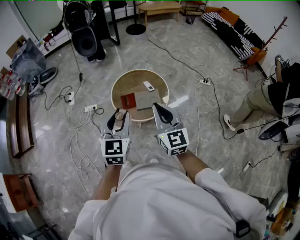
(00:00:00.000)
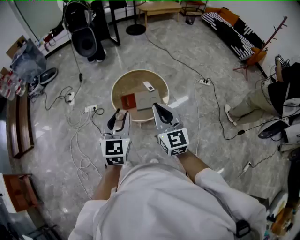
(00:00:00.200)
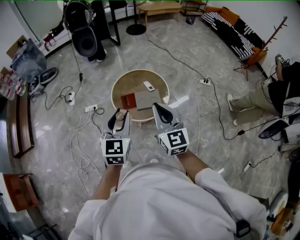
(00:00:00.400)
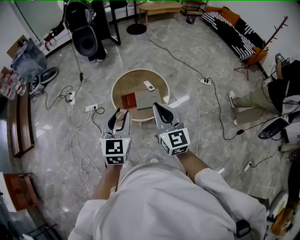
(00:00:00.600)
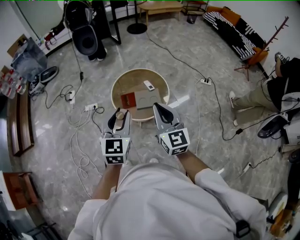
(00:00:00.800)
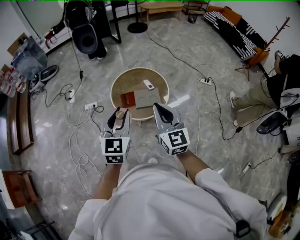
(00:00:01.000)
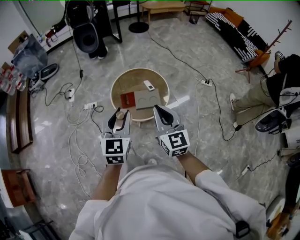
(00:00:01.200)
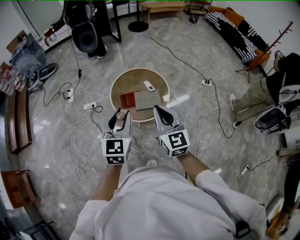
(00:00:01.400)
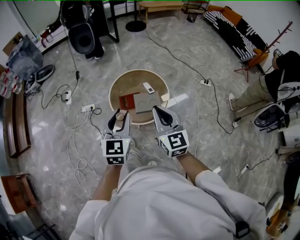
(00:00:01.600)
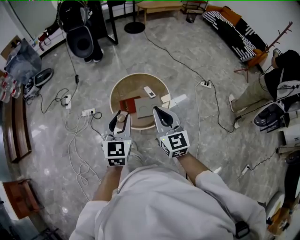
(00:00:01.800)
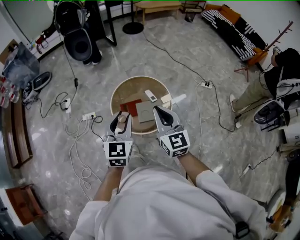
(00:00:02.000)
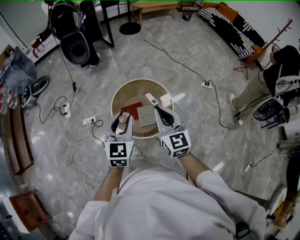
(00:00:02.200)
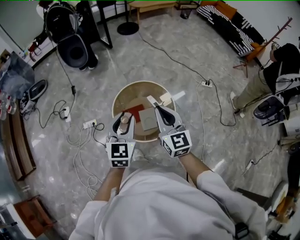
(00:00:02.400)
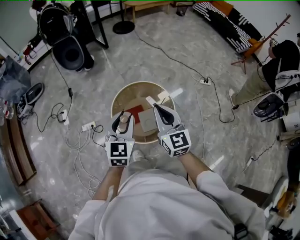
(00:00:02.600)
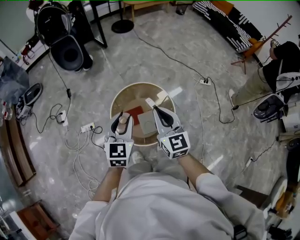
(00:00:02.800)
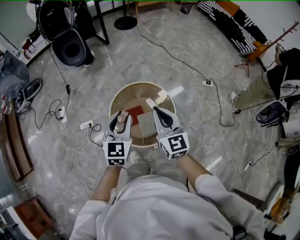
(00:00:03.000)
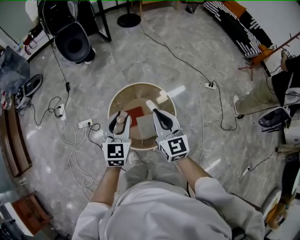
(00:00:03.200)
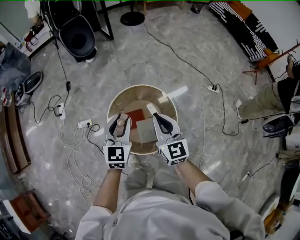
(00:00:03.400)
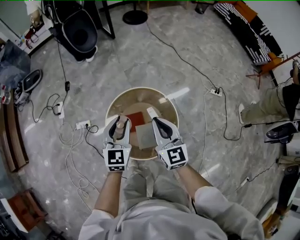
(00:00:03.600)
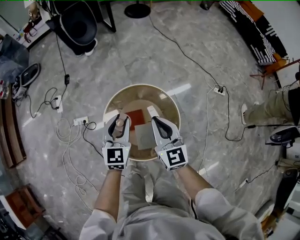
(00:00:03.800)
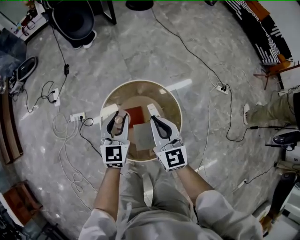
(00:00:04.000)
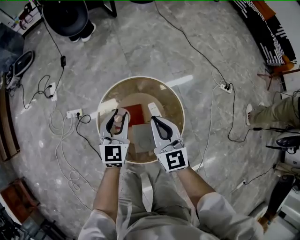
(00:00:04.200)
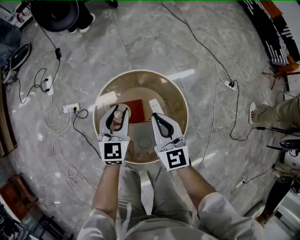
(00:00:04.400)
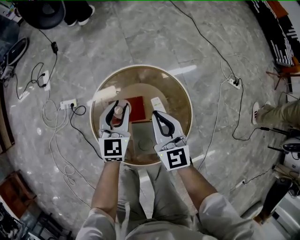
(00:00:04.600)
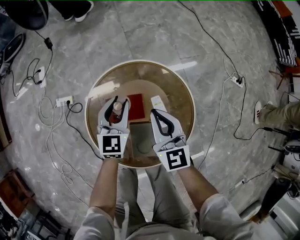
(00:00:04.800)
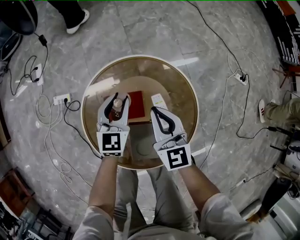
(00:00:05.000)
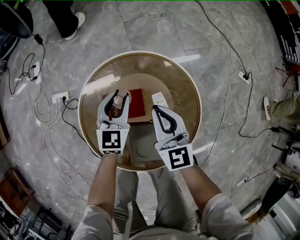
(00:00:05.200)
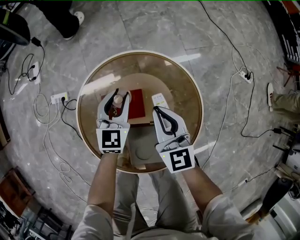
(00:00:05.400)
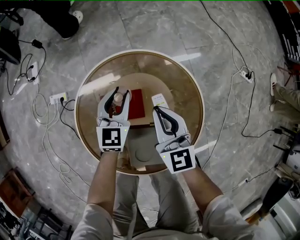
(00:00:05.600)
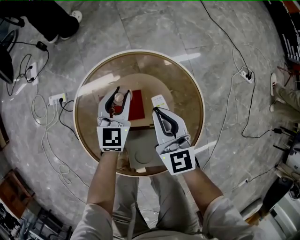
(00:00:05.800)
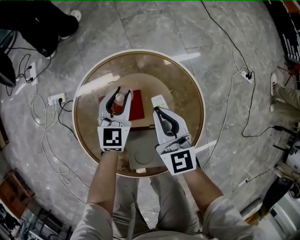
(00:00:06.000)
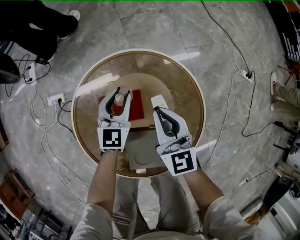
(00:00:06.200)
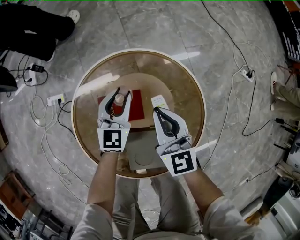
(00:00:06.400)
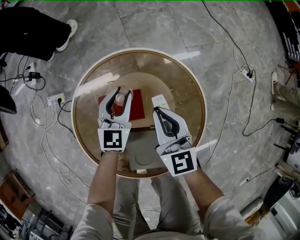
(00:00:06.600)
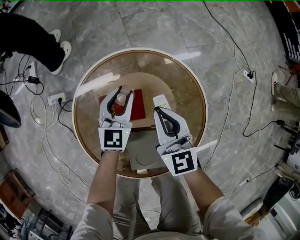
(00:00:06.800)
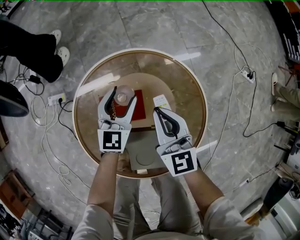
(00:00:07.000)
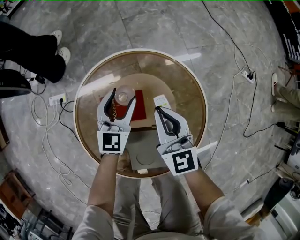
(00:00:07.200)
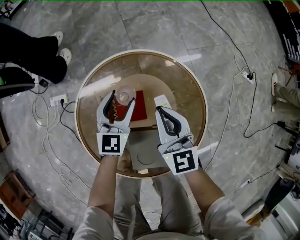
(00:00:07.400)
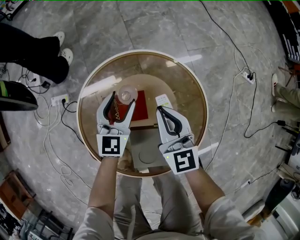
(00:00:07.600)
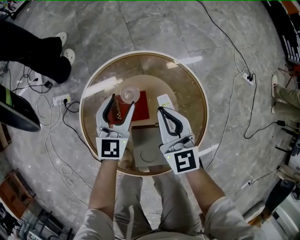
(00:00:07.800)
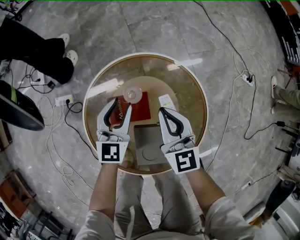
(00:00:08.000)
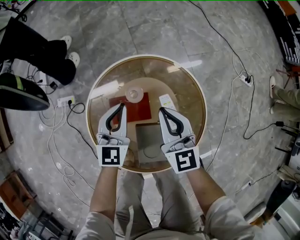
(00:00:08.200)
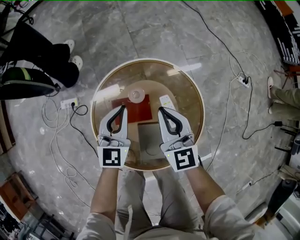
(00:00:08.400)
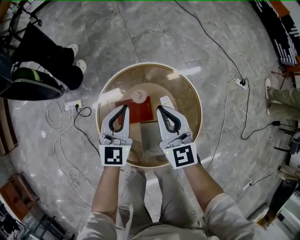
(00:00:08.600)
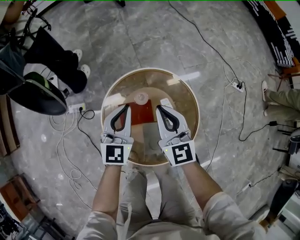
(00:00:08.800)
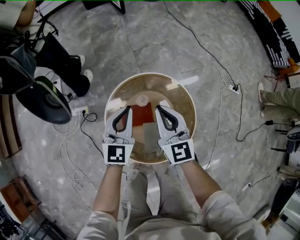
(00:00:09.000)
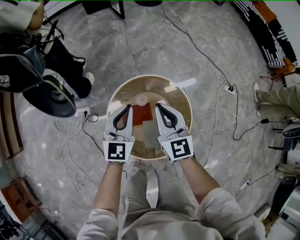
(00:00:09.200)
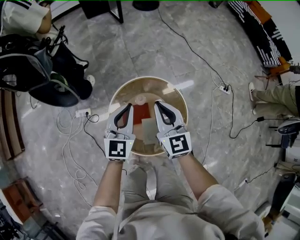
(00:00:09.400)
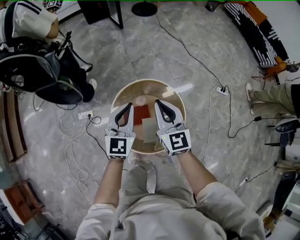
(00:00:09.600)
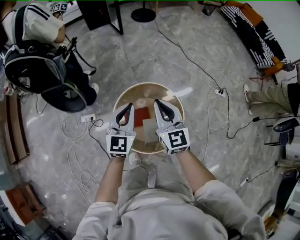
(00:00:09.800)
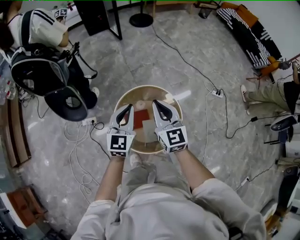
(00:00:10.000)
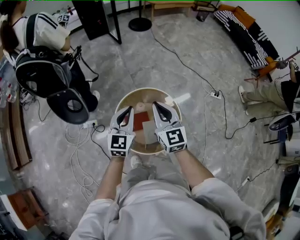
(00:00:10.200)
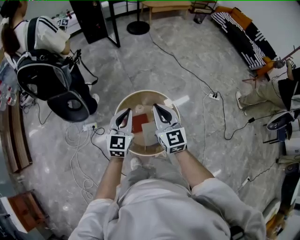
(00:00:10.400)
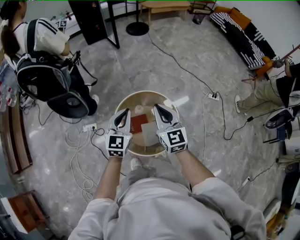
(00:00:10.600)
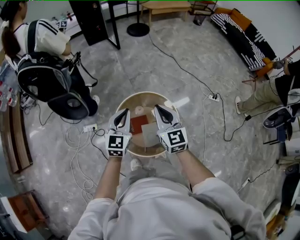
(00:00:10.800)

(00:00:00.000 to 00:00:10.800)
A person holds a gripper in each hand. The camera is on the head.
00:00:00.000 - 00:00:01.600: Both grippers travel together forward, roughly 5 cm.
00:00:01.600 - 00:00:03.000: Both grippers move forward, approximately 25 cm.
00:00:03.000 - 00:00:04.600: The grippers both shift downward and forward by approximately 40 cm.
00:00:04.600 - 00:00:06.200: The two grippers go roughly 15 cm downward.
00:00:06.200 - 00:00:07.800: The left gripper changes place by approximately 5 cm, and opens its fingers.
00:00:07.800 - 00:00:09.200: Both grippers move upward, roughly 30 cm. The left gripper closes.
00:00:09.200 - 00:00:10.800: The two grippers go about 20 cm upward and backward.

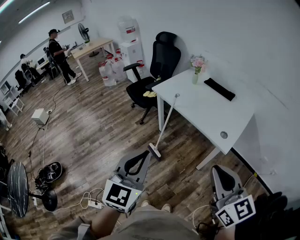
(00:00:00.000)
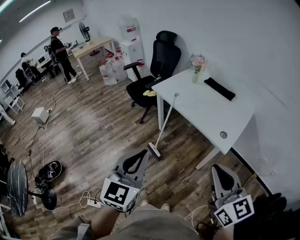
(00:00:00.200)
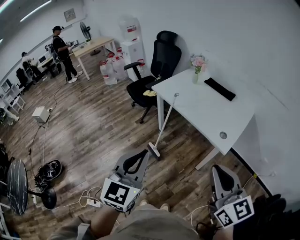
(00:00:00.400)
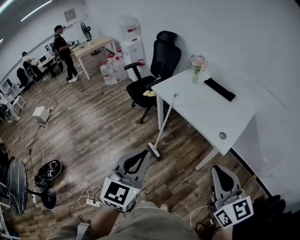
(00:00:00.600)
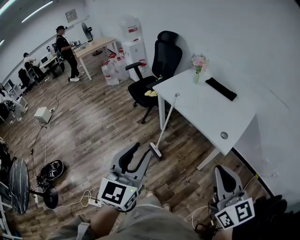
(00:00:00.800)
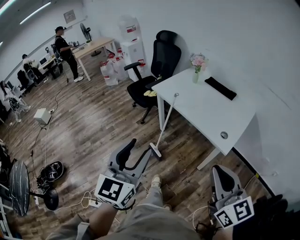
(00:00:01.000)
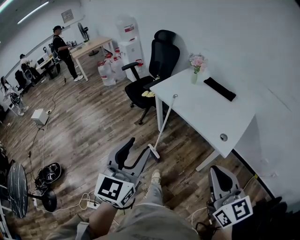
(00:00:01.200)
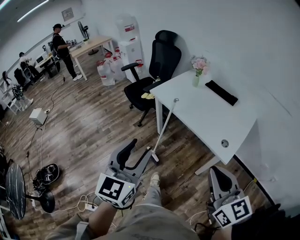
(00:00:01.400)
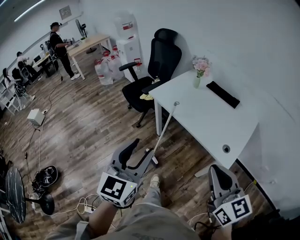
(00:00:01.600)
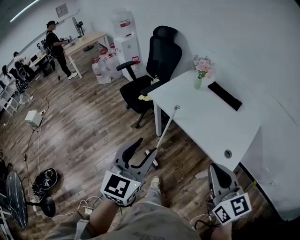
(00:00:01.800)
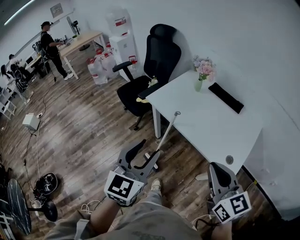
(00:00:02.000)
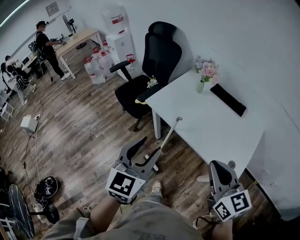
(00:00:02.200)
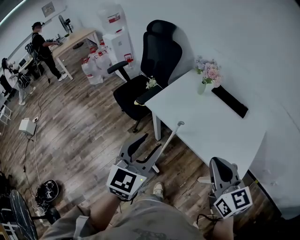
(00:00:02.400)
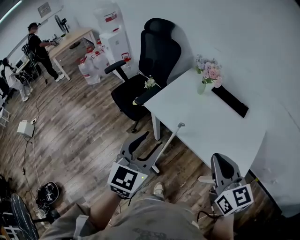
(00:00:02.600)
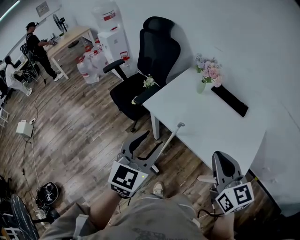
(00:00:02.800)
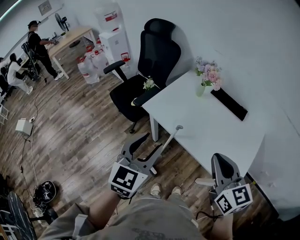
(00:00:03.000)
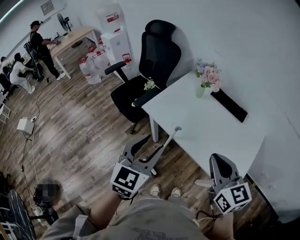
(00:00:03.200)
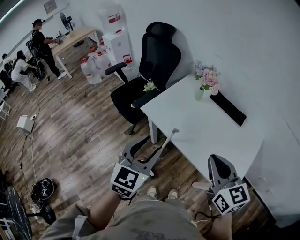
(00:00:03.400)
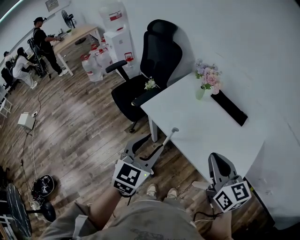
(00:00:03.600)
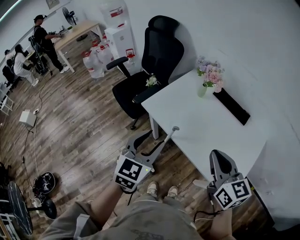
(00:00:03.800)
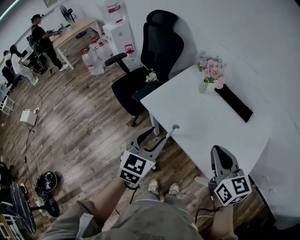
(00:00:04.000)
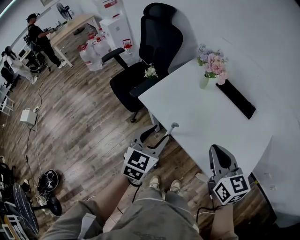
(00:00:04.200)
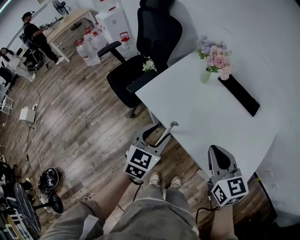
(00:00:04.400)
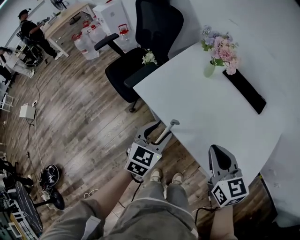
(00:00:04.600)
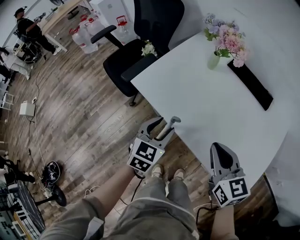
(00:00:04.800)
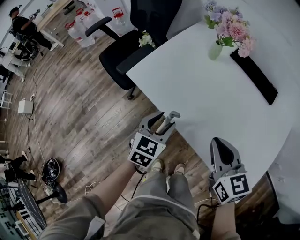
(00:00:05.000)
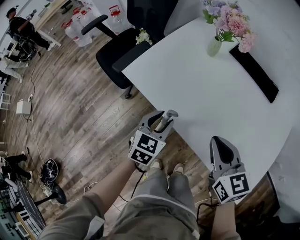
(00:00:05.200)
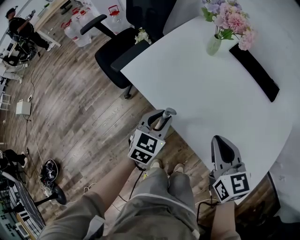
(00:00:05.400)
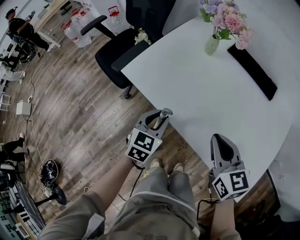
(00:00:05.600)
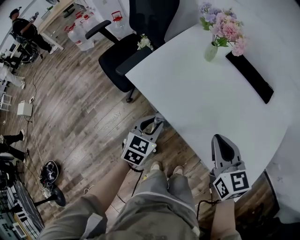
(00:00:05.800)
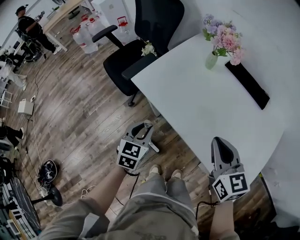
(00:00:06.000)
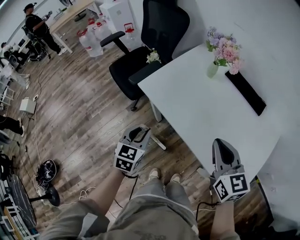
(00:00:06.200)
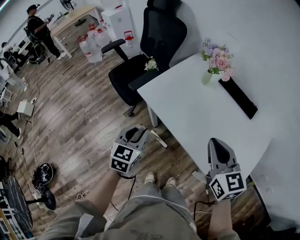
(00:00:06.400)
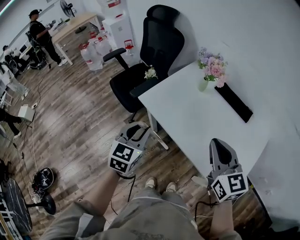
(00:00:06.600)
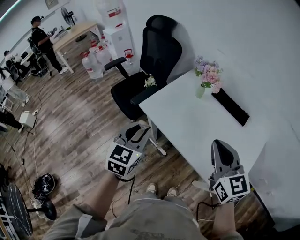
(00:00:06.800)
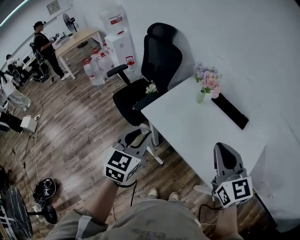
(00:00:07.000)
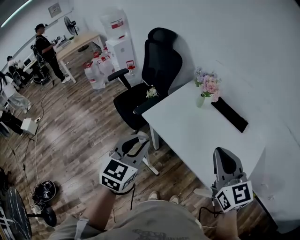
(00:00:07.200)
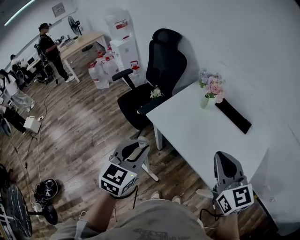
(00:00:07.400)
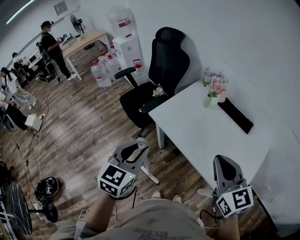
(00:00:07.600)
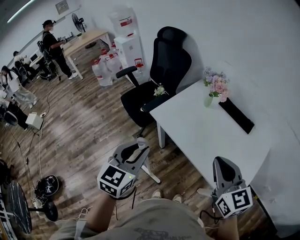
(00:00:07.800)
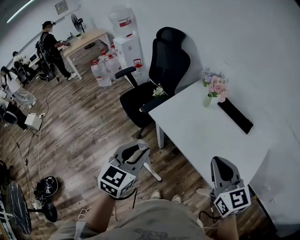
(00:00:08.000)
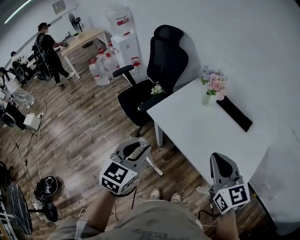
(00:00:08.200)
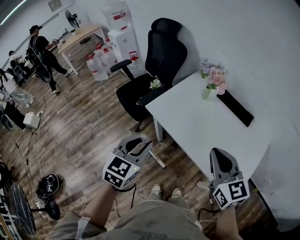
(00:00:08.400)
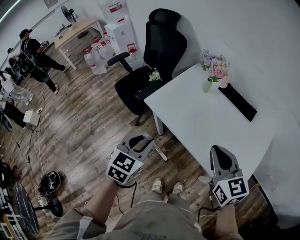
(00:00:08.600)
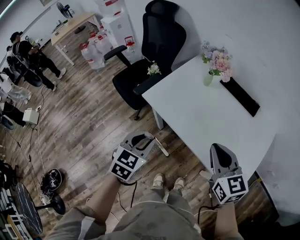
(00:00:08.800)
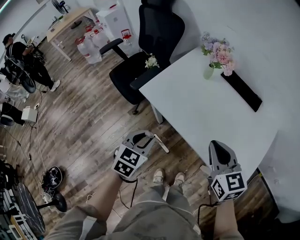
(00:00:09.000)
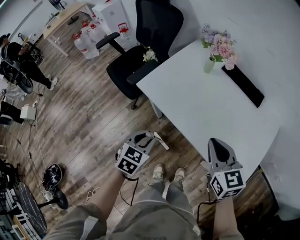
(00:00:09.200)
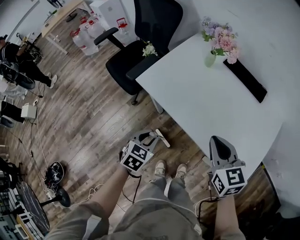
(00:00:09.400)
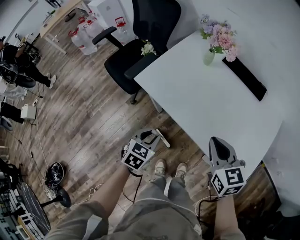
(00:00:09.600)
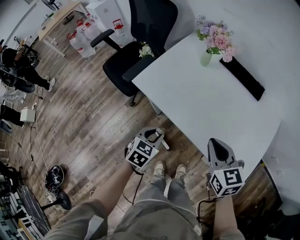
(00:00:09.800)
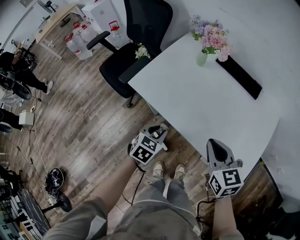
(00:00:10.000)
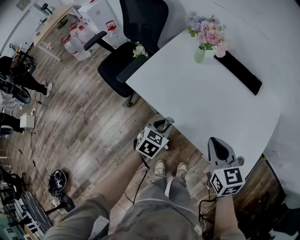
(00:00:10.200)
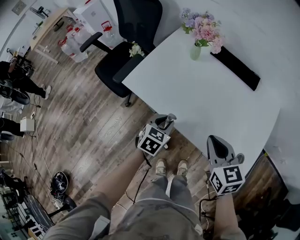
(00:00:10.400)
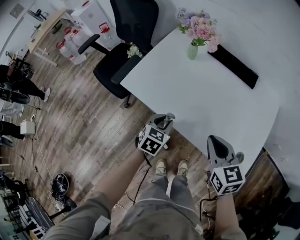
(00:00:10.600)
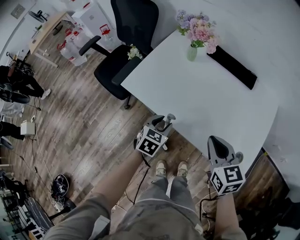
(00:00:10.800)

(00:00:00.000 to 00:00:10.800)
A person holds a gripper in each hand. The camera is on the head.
00:00:00.000 - 00:00:01.600: The two grippers go roughly 15 cm forward. The left gripper opens.
00:00:01.600 - 00:00:03.000: The grippers both shift forward by some 25 cm.
00:00:03.000 - 00:00:04.600: Both grippers travel together downward and forward, roughly 20 cm.
00:00:04.600 - 00:00:06.200: The right gripper moves some 10 cm downward and comes back, while the left gripper goes approximately 10 cm to the left, moves approximately 10 cm downward and comes back, and closes.
00:00:06.200 - 00:00:07.800: The right gripper travels upward and backward by some 15 cm. The left gripper goes roughly 25 cm upward.
00:00:07.800 - 00:00:09.200: The left gripper heads downward, covering roughly 25 cm, and turns by about 30 degrees, while the right gripper travels downward and forward by about 15 cm.
00:00:09.200 - 00:00:10.800: The right gripper is displaced to the right by approximately 5 cm, while the left gripper travels to the right, forward and downward by some 15 cm.

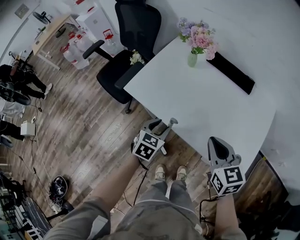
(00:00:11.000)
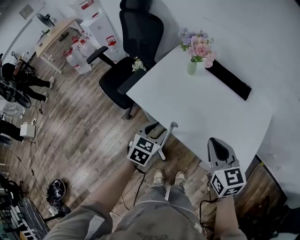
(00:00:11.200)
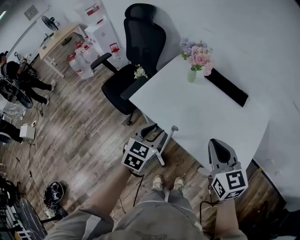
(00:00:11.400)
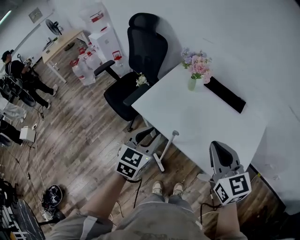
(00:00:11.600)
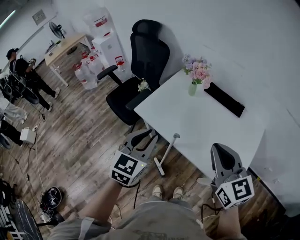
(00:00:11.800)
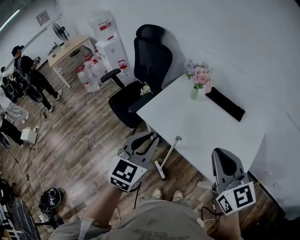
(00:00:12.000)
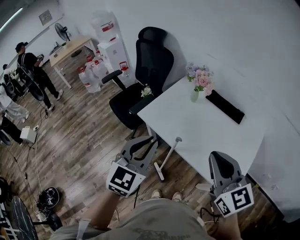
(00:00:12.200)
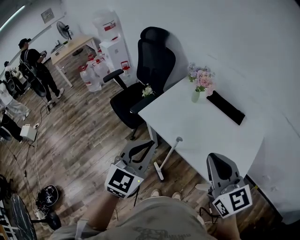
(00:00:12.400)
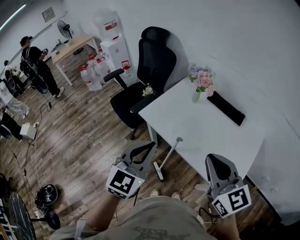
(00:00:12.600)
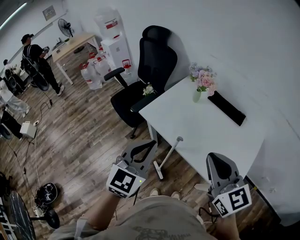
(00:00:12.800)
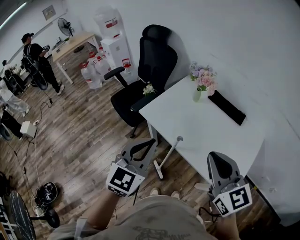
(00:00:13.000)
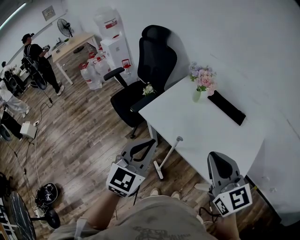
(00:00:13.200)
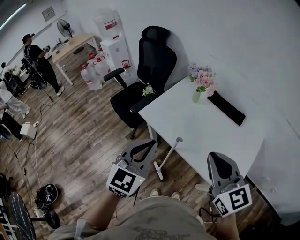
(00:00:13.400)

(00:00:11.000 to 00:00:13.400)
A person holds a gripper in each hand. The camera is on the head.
00:00:11.000 - 00:00:12.200: The grippers both shift upward by some 25 cm. The right gripper changes its angle by approximately 30 degrees; the left gripper tilts its fingers some 30 degrees upward, and closes up.
00:00:12.200 - 00:00:13.400: The grippers move only a little.
